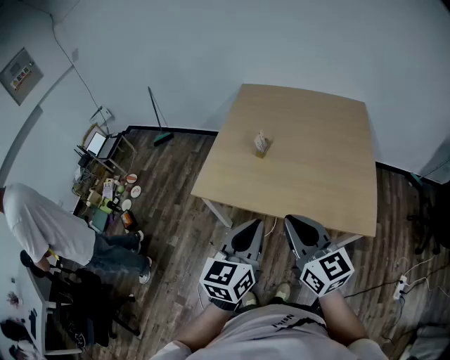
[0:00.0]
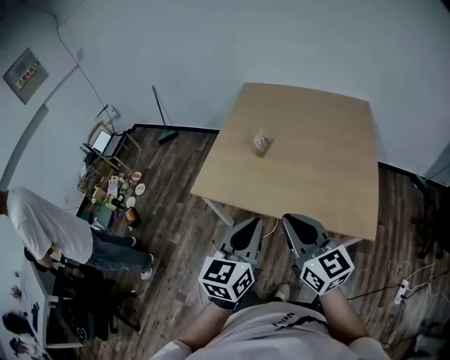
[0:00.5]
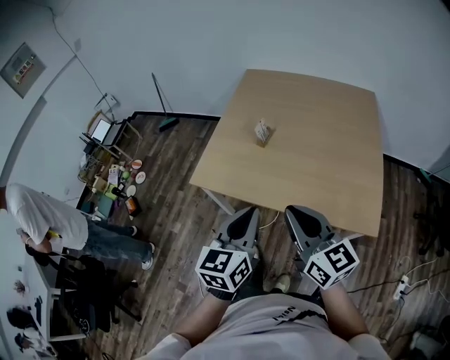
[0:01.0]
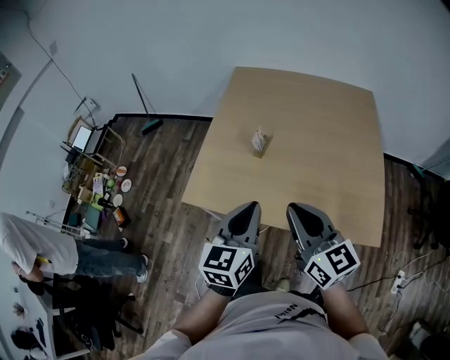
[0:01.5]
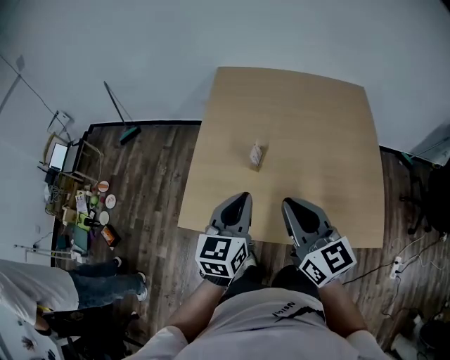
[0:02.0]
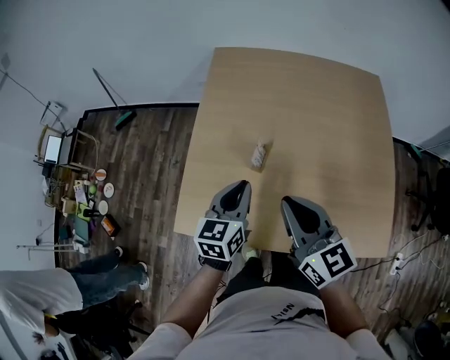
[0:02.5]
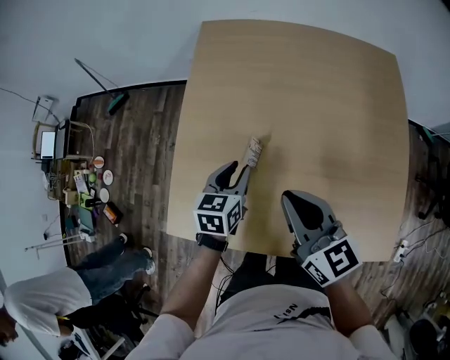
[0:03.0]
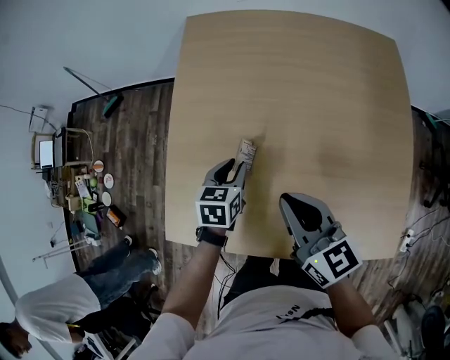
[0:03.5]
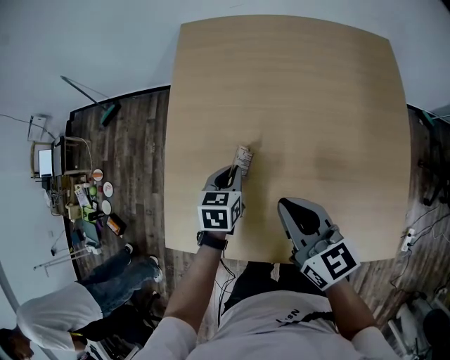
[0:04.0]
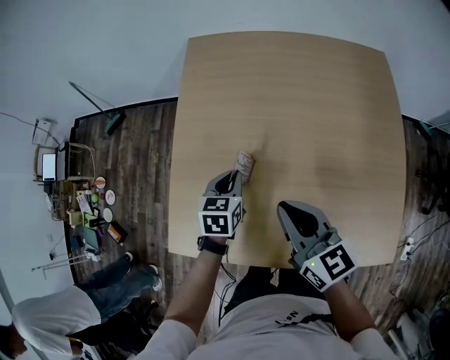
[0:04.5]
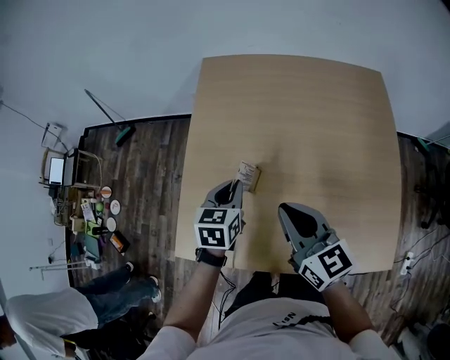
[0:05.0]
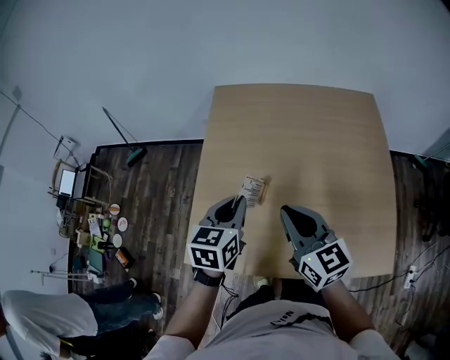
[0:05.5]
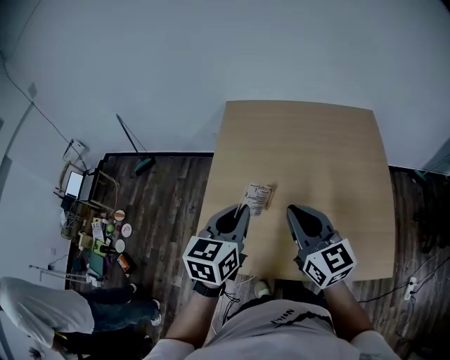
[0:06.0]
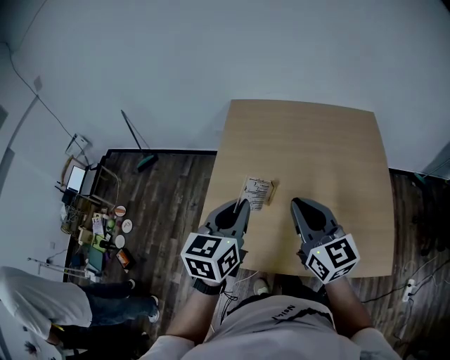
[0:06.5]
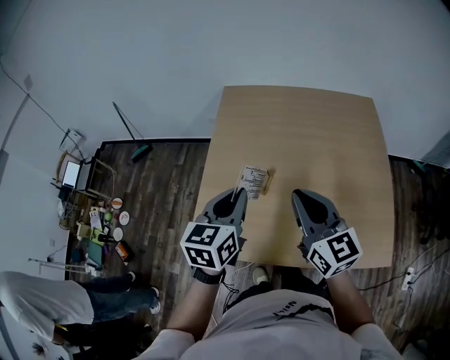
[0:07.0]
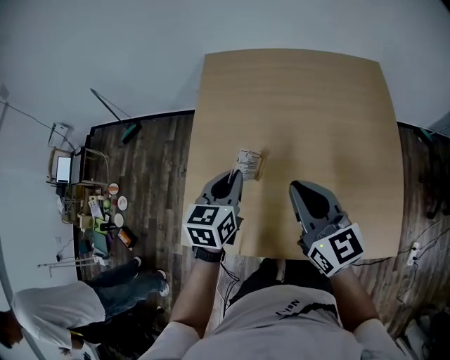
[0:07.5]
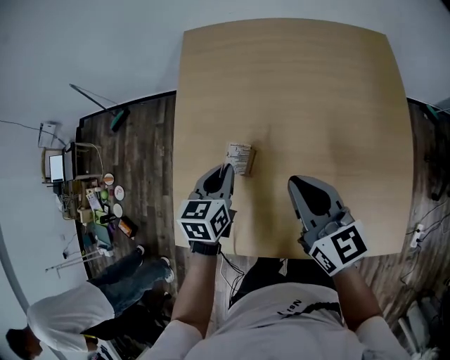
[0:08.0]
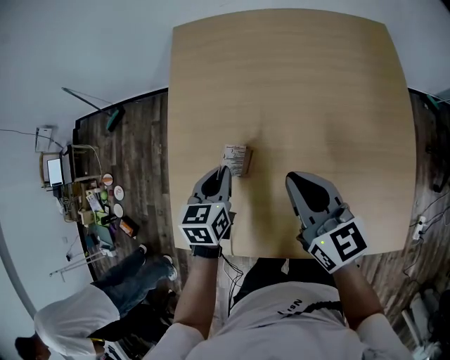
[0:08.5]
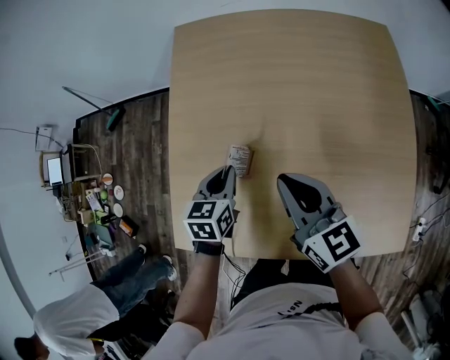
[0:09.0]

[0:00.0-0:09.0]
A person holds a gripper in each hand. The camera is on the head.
0:00.0 to 0:02.0: The two grippers go roughly 25 cm forward.
0:02.0 to 0:04.5: Both grippers travel together forward and downward, approximately 25 cm. The left gripper changes its angle by some 30 degrees, and opens, then closes once more.
0:04.5 to 0:07.0: The right gripper moves upward and backward, approximately 15 cm. Meanwhile the left gripper is displaced upward and backward by roughly 30 cm, and swivels approximately 20 degrees.
0:07.0 to 0:09.0: The grippers both shift downward and forward by approximately 25 cm. The left gripper changes its angle by about 20 degrees.

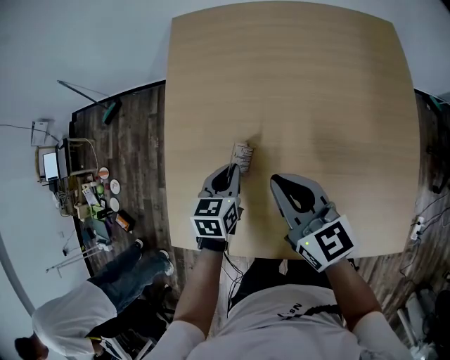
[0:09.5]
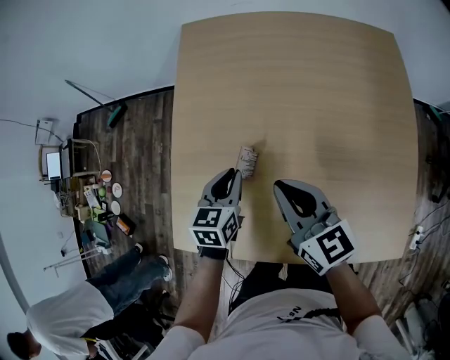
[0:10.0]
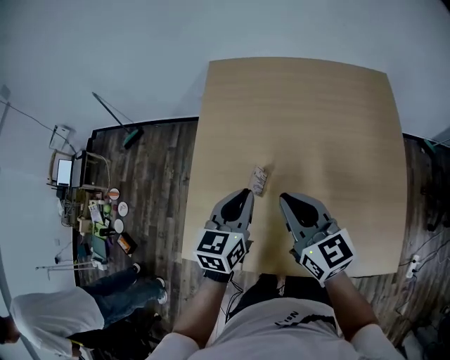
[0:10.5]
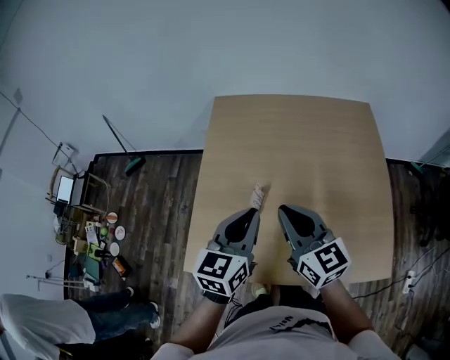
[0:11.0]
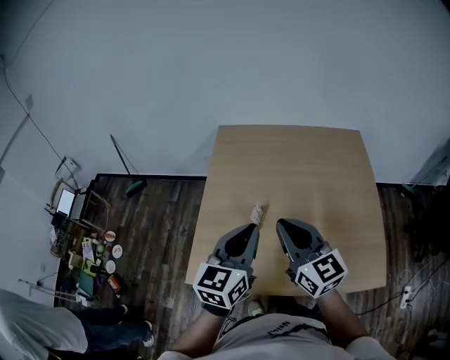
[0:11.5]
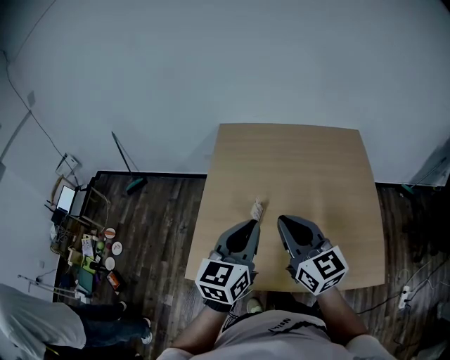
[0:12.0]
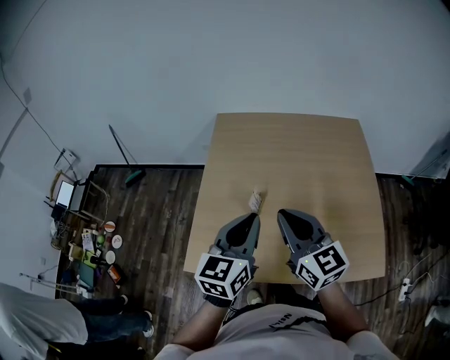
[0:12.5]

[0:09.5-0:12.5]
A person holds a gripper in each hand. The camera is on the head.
0:09.5 to 0:11.0: The left gripper travels upward by roughly 25 cm, and rotates some 30 degrees. The right gripper travels upward and backward by roughly 15 cm.
0:11.0 to 0:12.5: The two grippers go roughly 10 cm backward and upward.

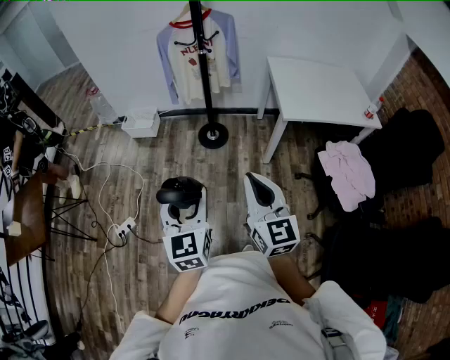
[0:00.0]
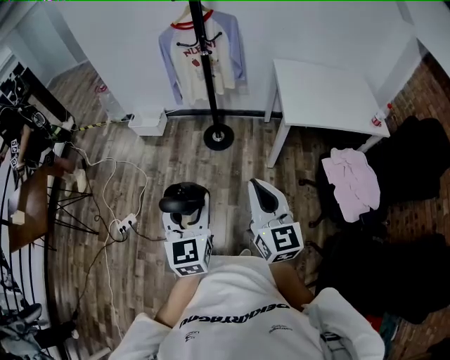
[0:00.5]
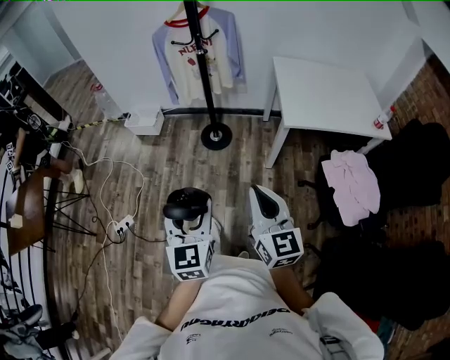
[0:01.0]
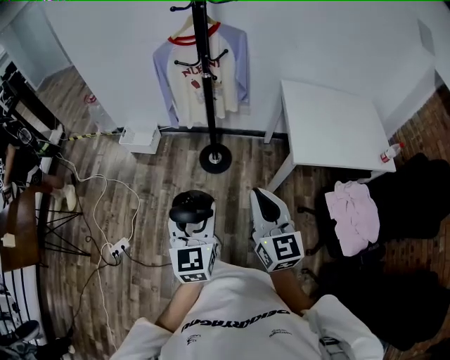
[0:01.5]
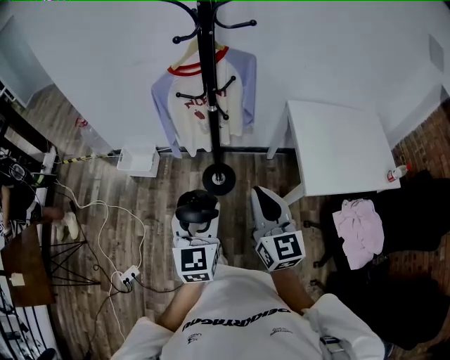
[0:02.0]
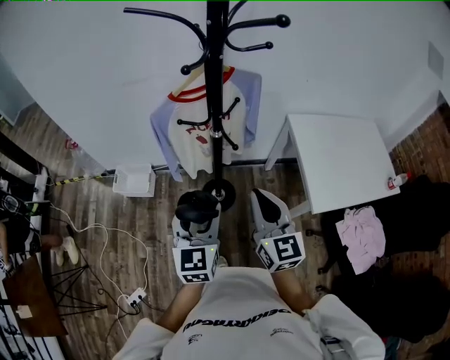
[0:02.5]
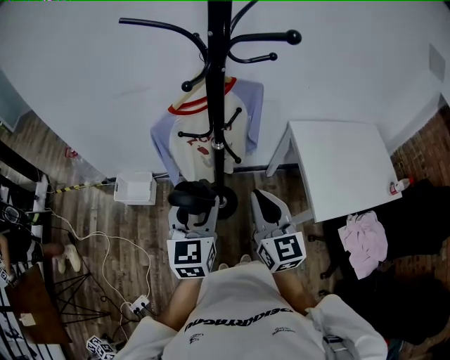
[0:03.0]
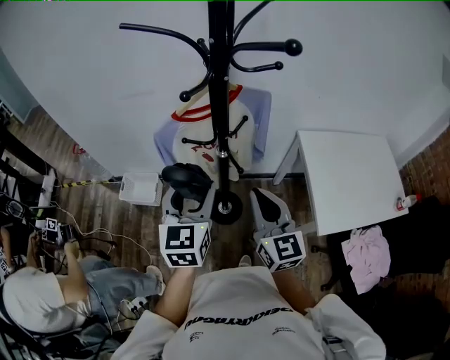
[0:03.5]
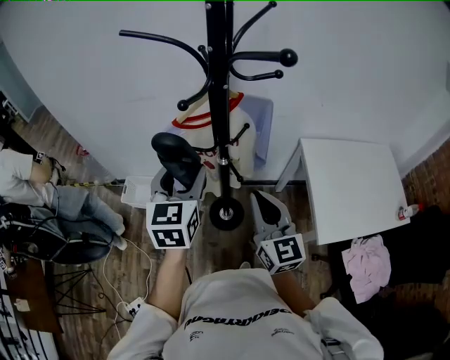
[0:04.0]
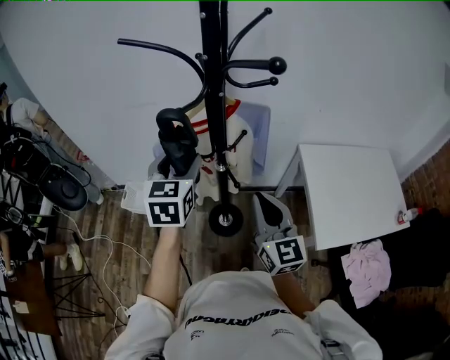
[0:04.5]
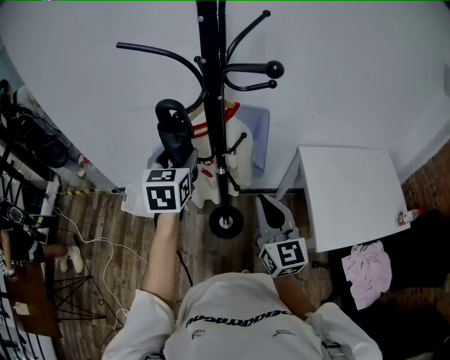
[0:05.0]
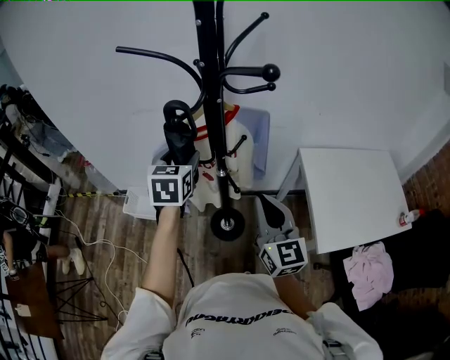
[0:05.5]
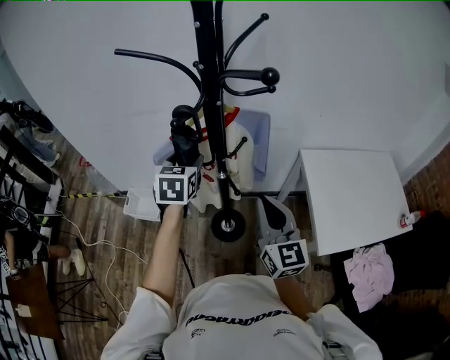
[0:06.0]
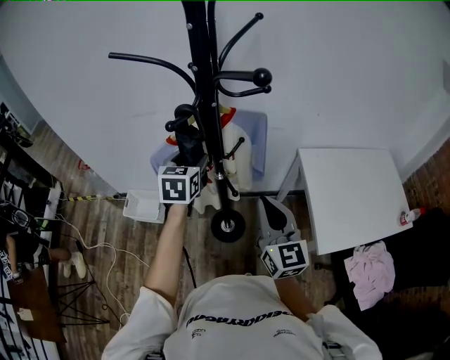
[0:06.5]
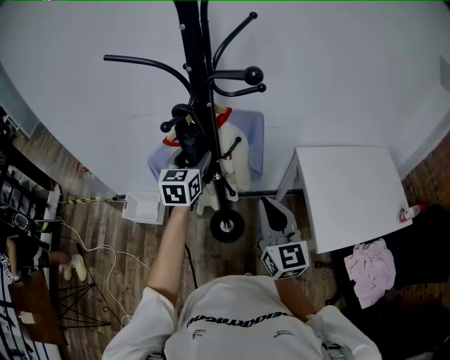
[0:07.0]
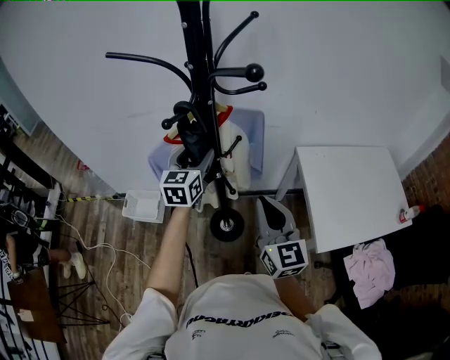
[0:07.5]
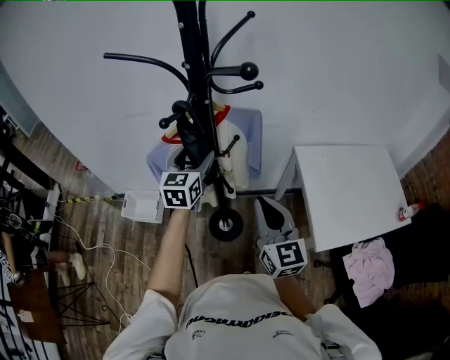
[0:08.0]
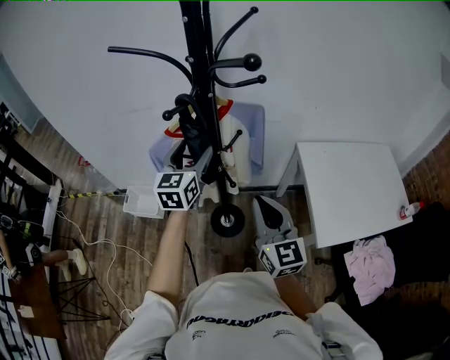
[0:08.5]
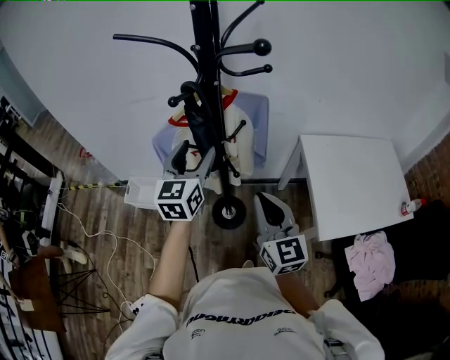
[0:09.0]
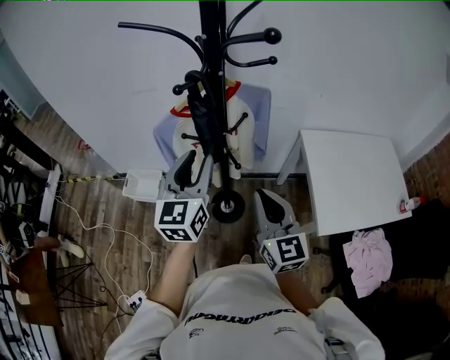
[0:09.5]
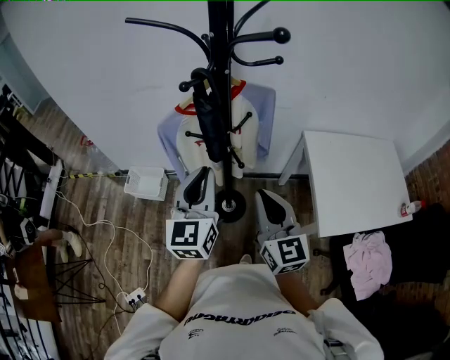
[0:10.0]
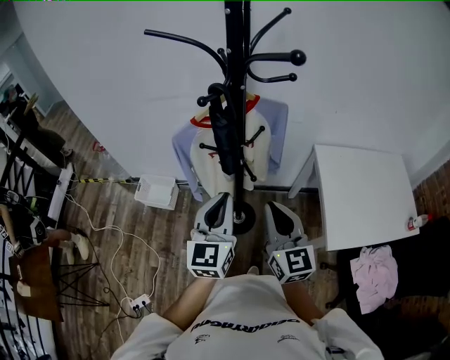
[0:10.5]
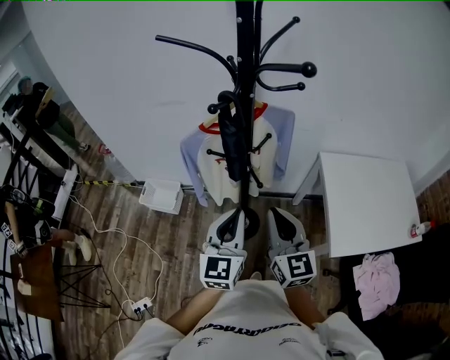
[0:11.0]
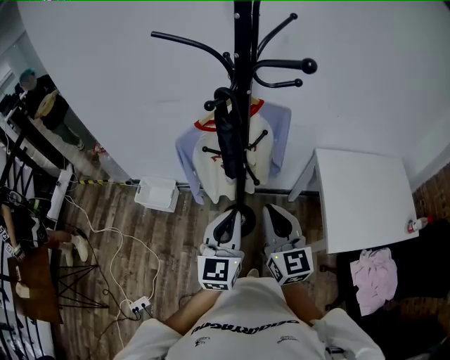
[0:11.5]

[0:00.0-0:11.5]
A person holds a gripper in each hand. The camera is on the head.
0:00.0 to 0:02.0: The pair of grippers is taken forward, approximately 40 cm.
0:02.0 to 0:04.0: The two grippers go approximately 25 cm forward.
0:04.0 to 0:06.0: The left gripper travels forward by roughly 10 cm.
0:06.0 to 0:07.5: The left gripper moves roughly 5 cm, and swivels some 20 degrees.
0:07.5 to 0:09.5: The right gripper changes place by roughly 5 cm, while the left gripper is displaced backward by some 15 cm, and closes.
0:09.5 to 0:11.5: The left gripper shifts about 10 cm backward and downward, and closes its fingers.

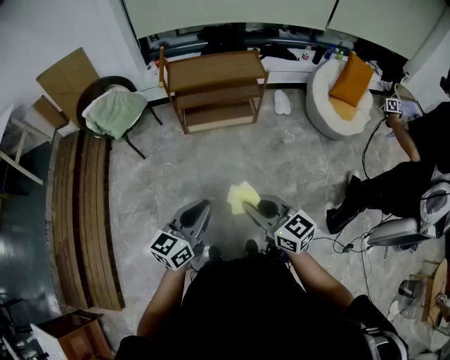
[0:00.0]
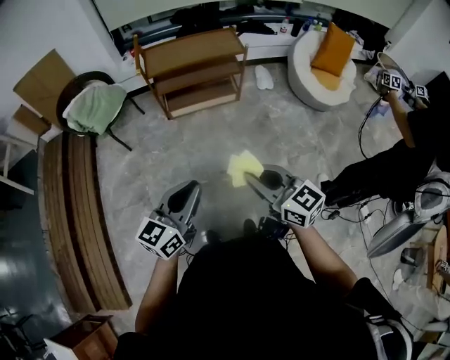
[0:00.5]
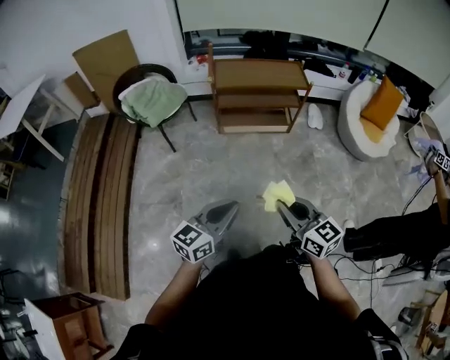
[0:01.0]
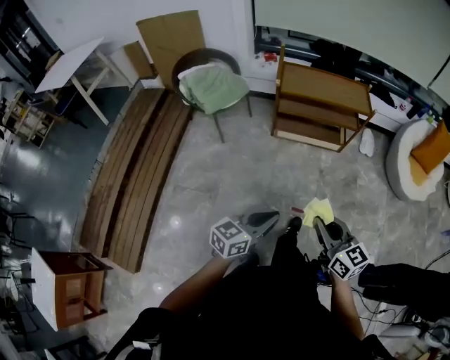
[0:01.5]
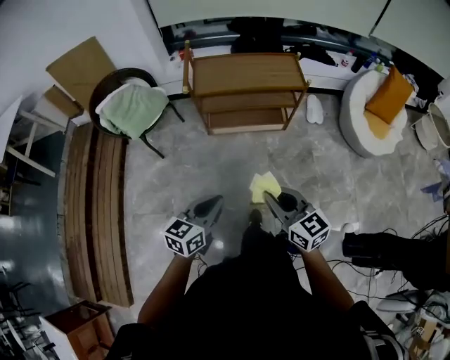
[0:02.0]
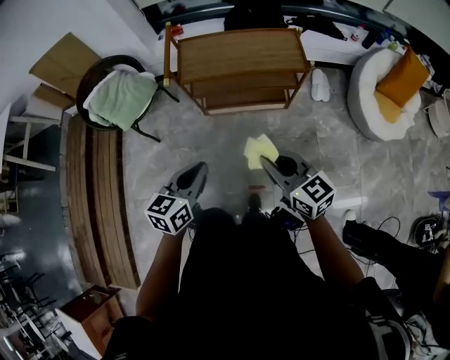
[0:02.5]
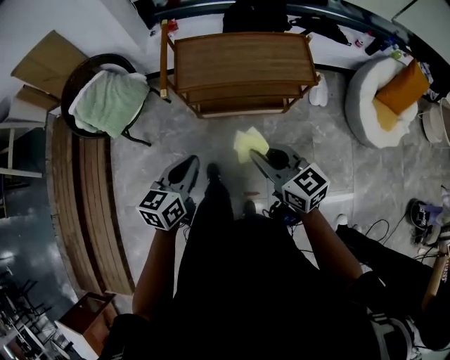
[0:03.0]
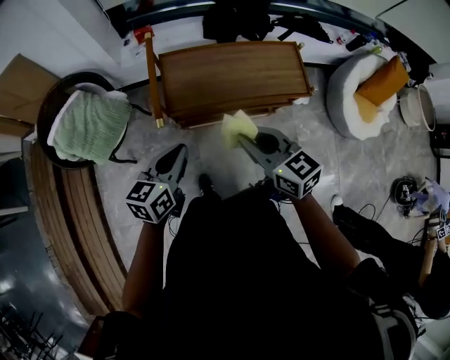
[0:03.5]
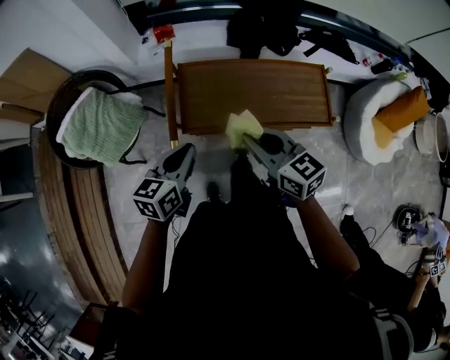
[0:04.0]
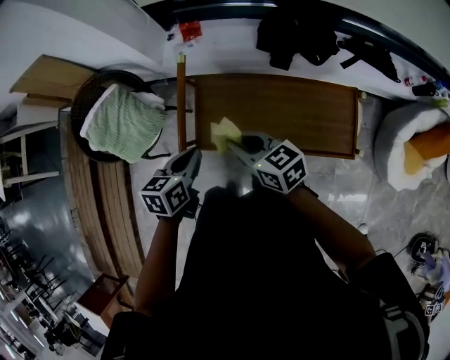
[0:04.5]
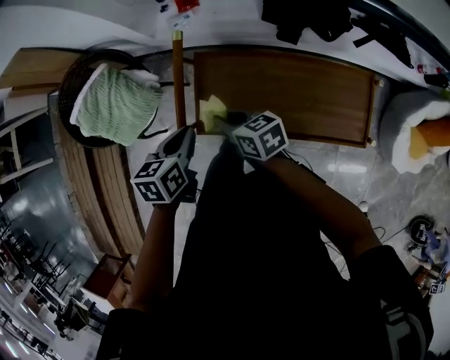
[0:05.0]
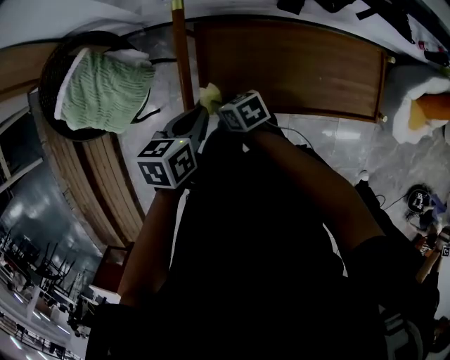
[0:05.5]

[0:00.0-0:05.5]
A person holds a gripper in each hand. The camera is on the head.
0:00.0 to 0:02.0: Both grippers move forward, approximately 20 cm.
0:02.0 to 0:03.5: The pair of grippers is taken forward, roughly 40 cm.
0:03.5 to 0:05.5: The right gripper travels downward, forward and to the left by roughly 40 cm, and changes its angle by about 50 degrees. Meanwhile the left gripper shifts some 25 cm forward and downward, and swivels roughly 30 degrees.
